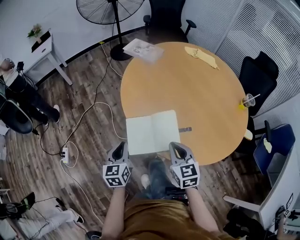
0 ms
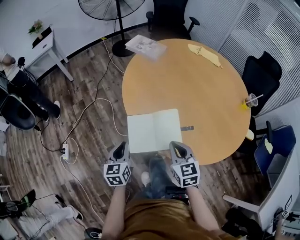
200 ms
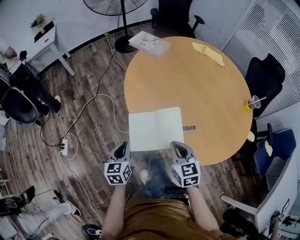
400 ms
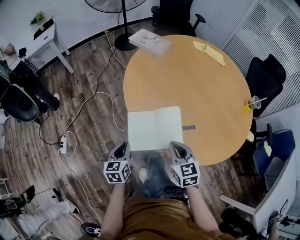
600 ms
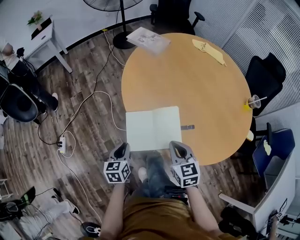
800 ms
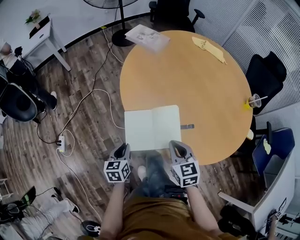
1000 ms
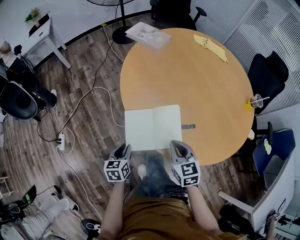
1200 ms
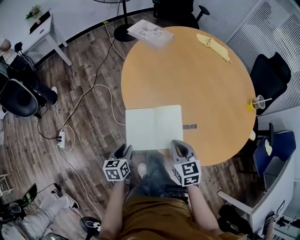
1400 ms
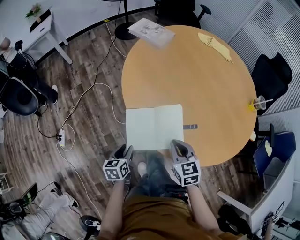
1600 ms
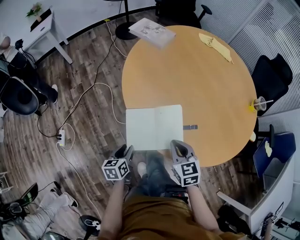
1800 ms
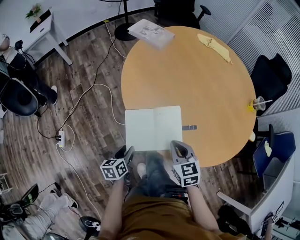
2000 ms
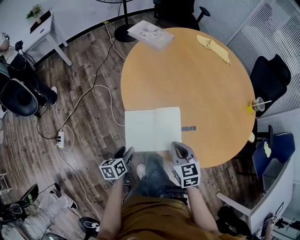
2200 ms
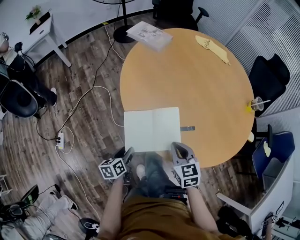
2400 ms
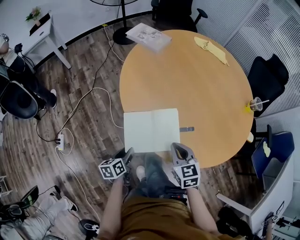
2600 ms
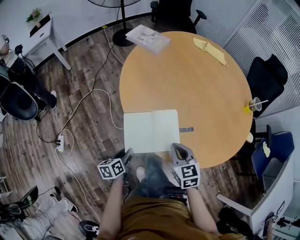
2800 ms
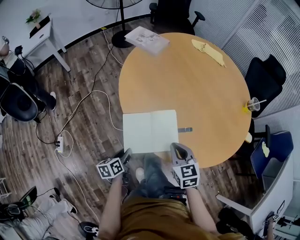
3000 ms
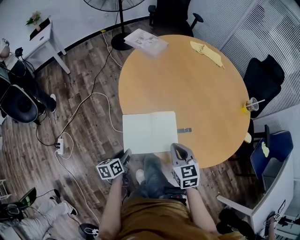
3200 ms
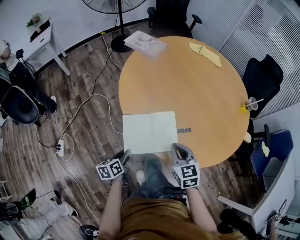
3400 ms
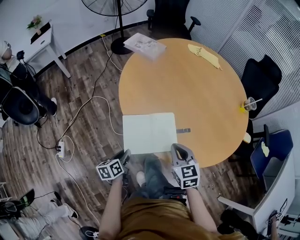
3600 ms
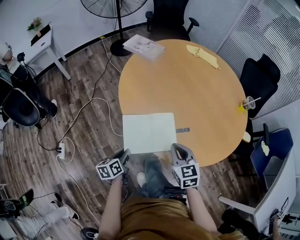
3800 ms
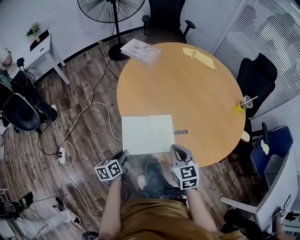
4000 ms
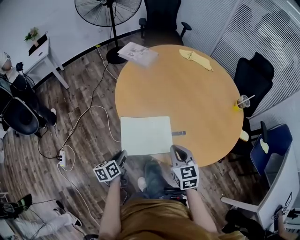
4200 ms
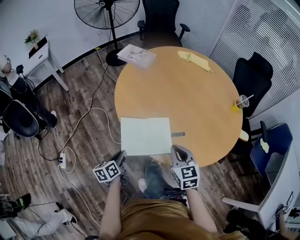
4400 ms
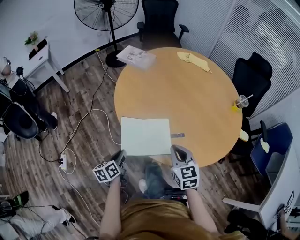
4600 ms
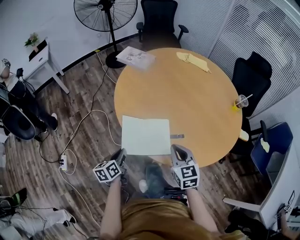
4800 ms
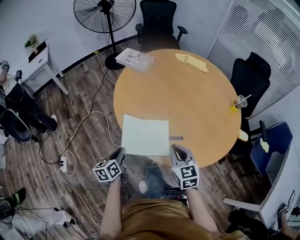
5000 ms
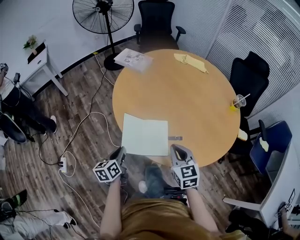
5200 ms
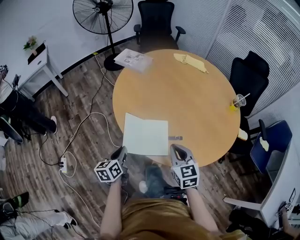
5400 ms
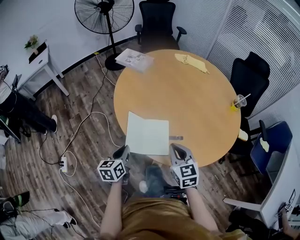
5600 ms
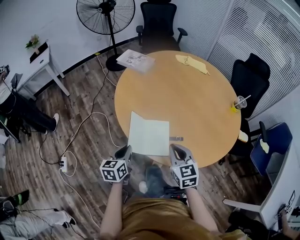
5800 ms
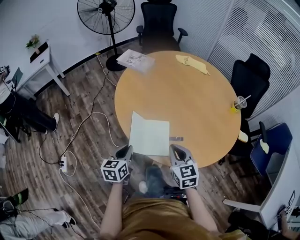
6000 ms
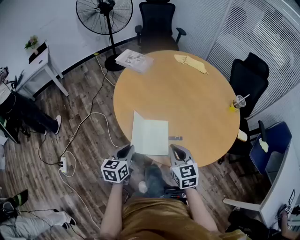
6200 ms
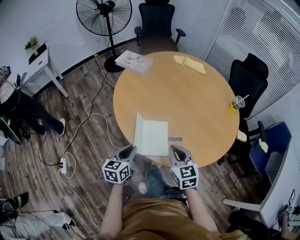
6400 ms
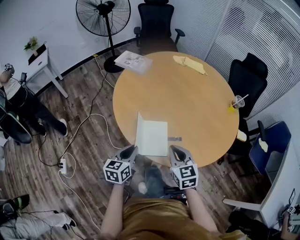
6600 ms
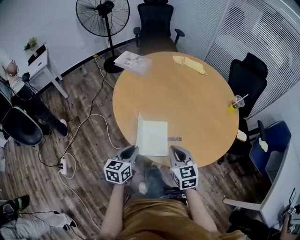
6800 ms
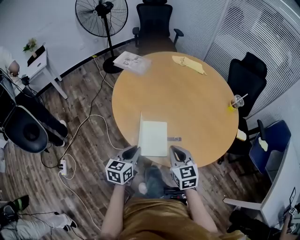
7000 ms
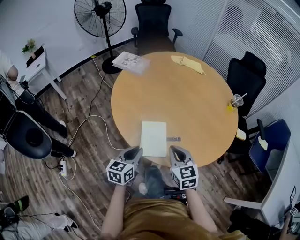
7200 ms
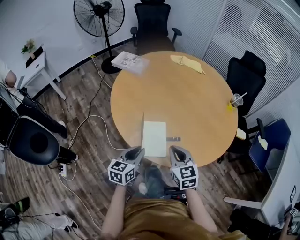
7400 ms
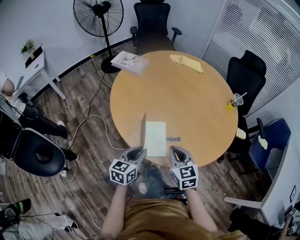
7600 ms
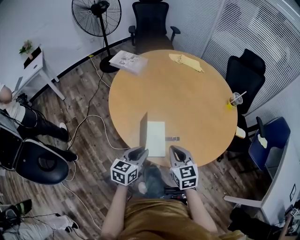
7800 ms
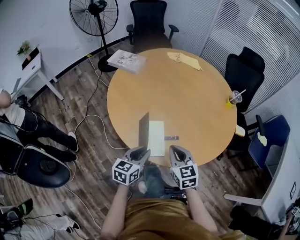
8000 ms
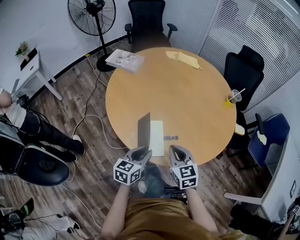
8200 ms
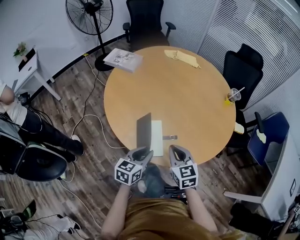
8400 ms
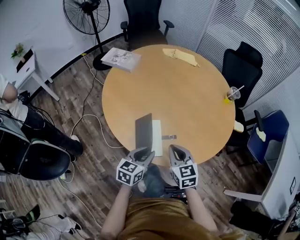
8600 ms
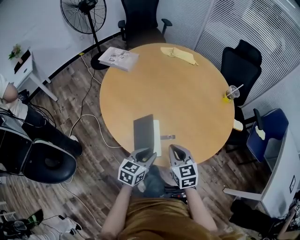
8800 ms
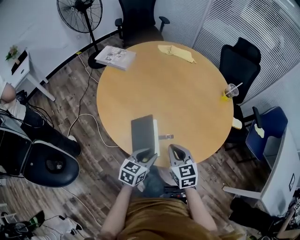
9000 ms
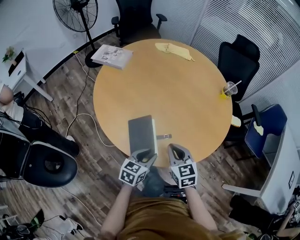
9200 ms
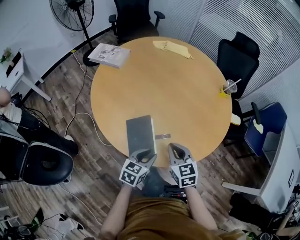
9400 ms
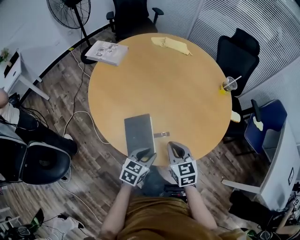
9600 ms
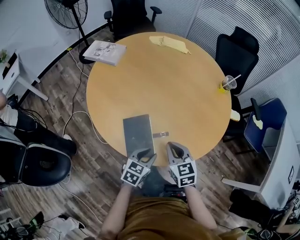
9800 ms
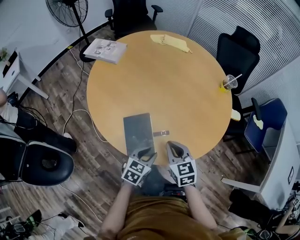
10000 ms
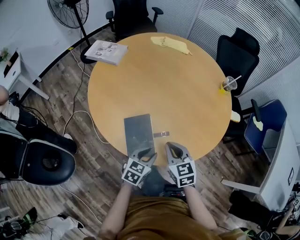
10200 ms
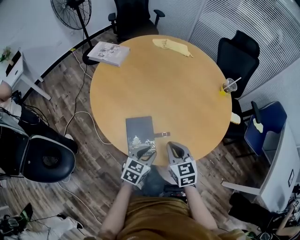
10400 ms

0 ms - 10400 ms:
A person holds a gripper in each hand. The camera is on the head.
0 ms - 1400 ms: The right gripper shifts about 5 cm downward, while the left gripper moves downward, roughly 10 cm, swivels roughly 20 degrees, and opens its fingers.
1400 ms - 3000 ms: The grippers make only small movements.
3000 ms - 4400 ms: The left gripper goes some 5 cm upward; the right gripper ends up roughly 5 cm from where it was.
4400 ms - 6000 ms: The left gripper goes approximately 5 cm upward, and changes its angle by about 30 degrees.
6000 ms - 7400 ms: The left gripper moves to the right, about 5 cm.
7400 ms - 9000 ms: The left gripper heads to the right, covering some 10 cm.
9000 ms - 10400 ms: There are only small adjustments of the grippers.

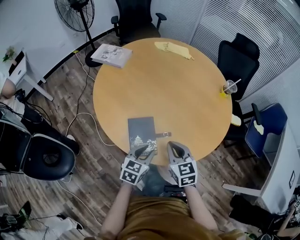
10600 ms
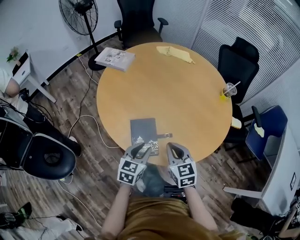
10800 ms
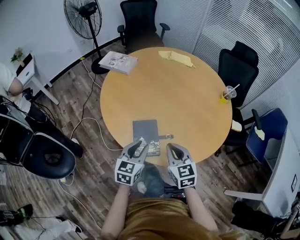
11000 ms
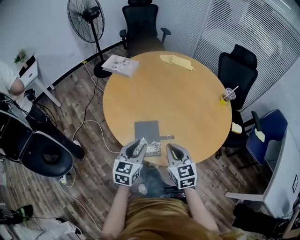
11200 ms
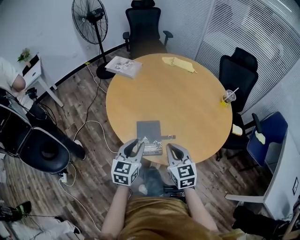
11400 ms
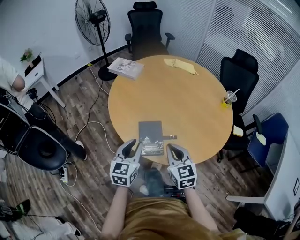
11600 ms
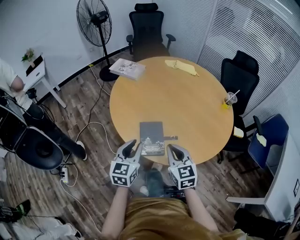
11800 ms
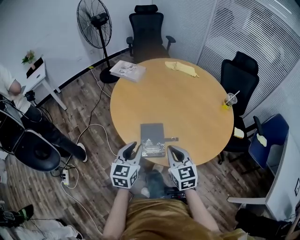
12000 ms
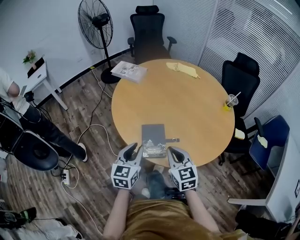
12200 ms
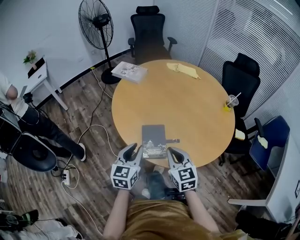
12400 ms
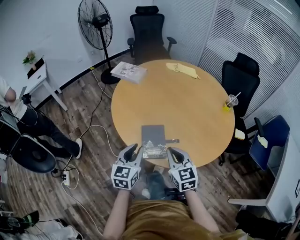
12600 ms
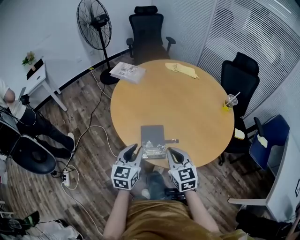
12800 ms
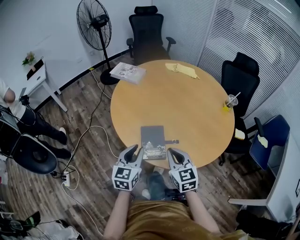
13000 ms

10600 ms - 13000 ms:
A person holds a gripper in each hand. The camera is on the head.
10600 ms - 11800 ms: The right gripper shifts some 10 cm upward and backward. The left gripper travels upward and to the left by some 15 cm, and turns by about 30 degrees.
11800 ms - 13000 ms: Neither gripper changes place.

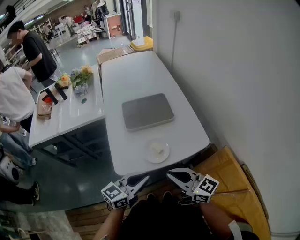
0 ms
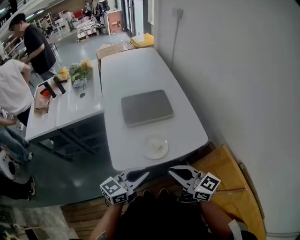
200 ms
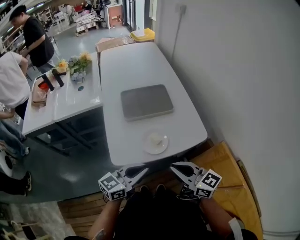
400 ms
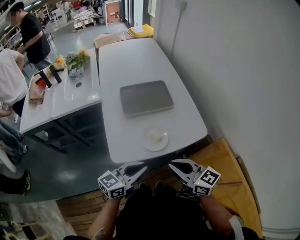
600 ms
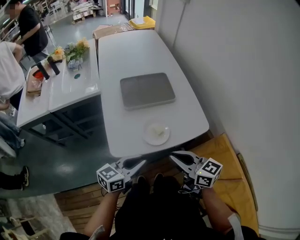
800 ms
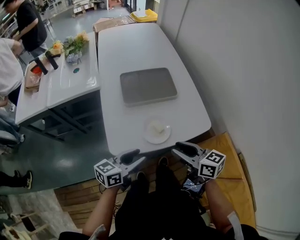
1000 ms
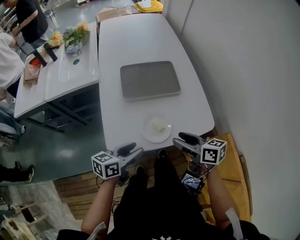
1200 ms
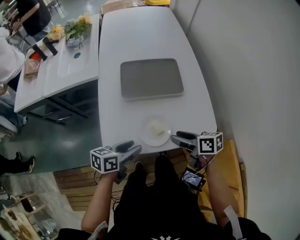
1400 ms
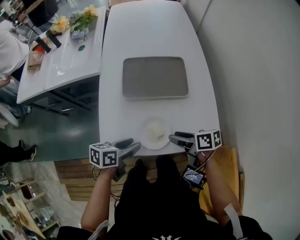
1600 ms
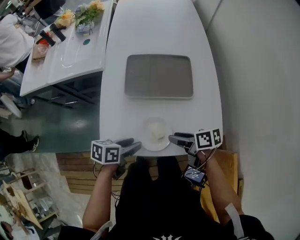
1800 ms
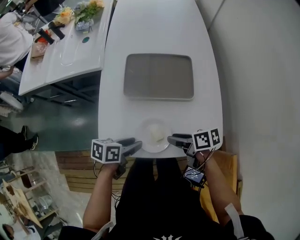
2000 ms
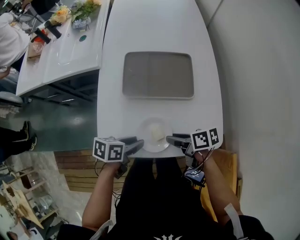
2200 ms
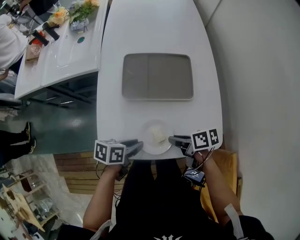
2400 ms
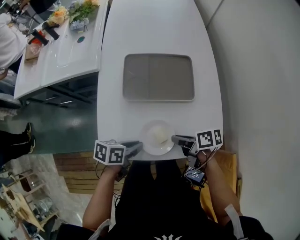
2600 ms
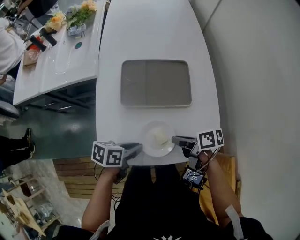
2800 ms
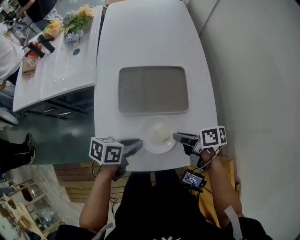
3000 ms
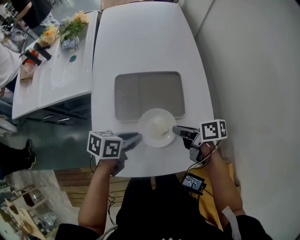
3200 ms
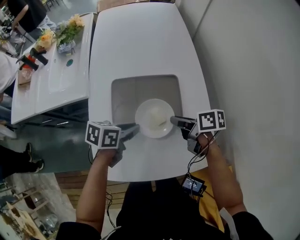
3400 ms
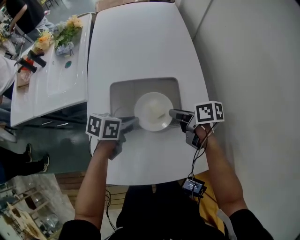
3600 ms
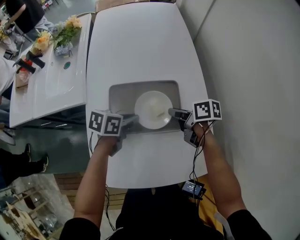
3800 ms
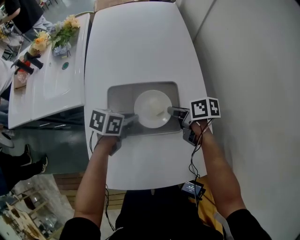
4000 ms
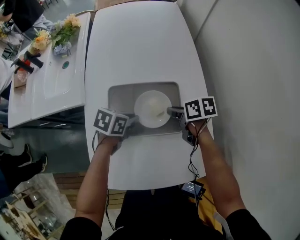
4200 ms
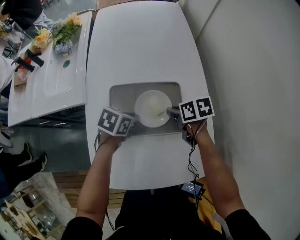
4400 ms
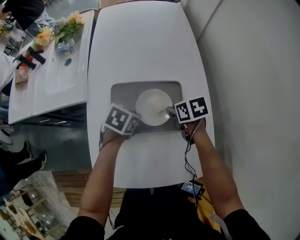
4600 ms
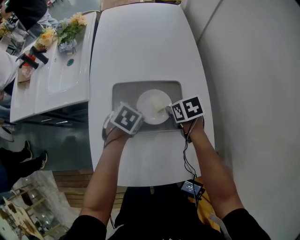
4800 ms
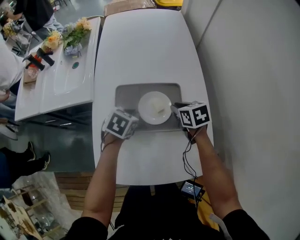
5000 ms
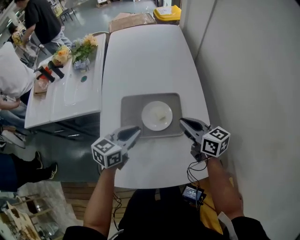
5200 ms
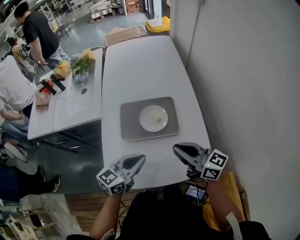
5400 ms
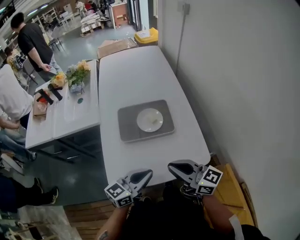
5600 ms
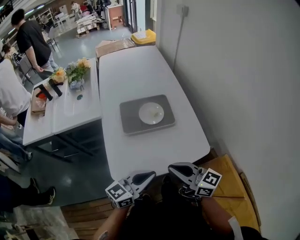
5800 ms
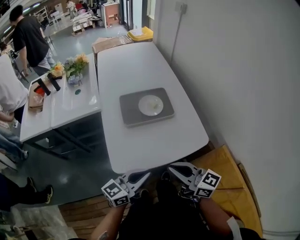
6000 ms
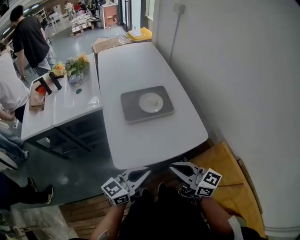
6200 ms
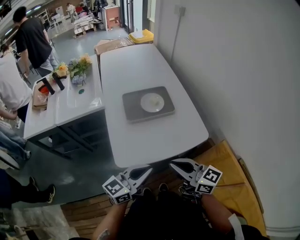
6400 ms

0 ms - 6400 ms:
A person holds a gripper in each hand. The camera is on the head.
0 ms - 1600 ms: Both grippers move downward and forward, about 25 cm. The left gripper swivels some 50 degrees, and opens. The right gripper turns by roughly 60 degrees, and opens its fingers.
1600 ms - 3200 ms: The right gripper moves approximately 15 cm, and closes; the left gripper ends up about 15 cm from where it was, and closes.
3200 ms - 4800 ms: The left gripper ends up approximately 15 cm from where it was, and rotates roughly 40 degrees. The right gripper ends up some 15 cm from where it was, and rotates some 40 degrees.
4800 ms - 6400 ms: The two grippers travel together, backward, about 50 cm. Both grippers travel together upward, about 20 cm. The left gripper angles its fingers upward, by roughly 70 degrees, while the right gripper points its fingers about 60 degrees further upward, and closes up.

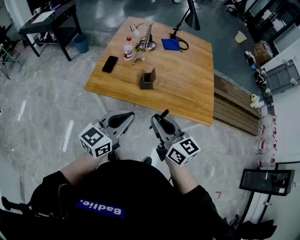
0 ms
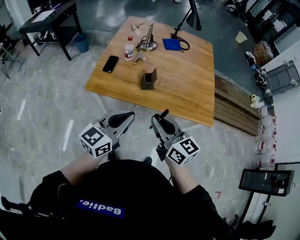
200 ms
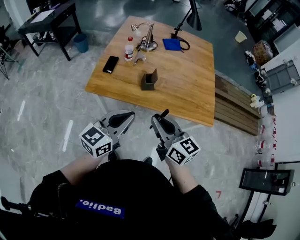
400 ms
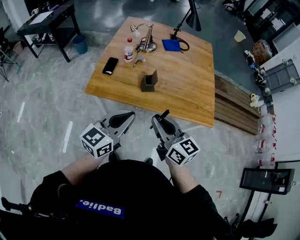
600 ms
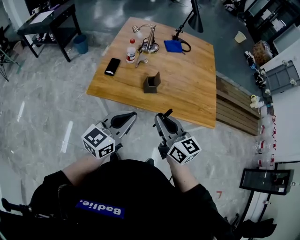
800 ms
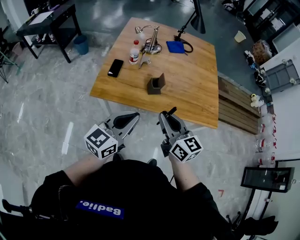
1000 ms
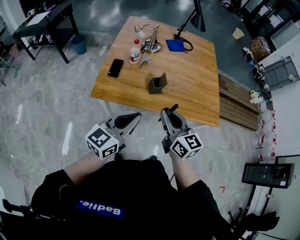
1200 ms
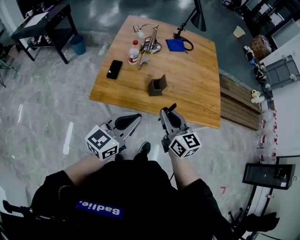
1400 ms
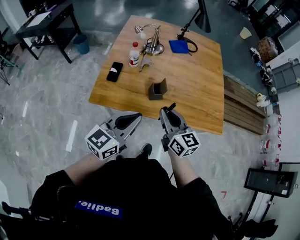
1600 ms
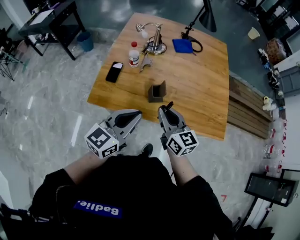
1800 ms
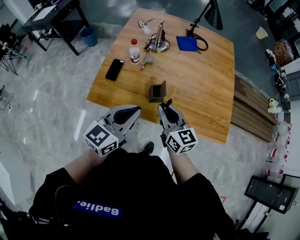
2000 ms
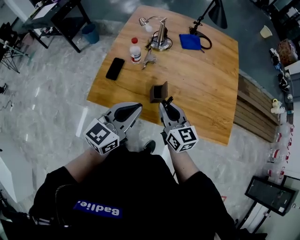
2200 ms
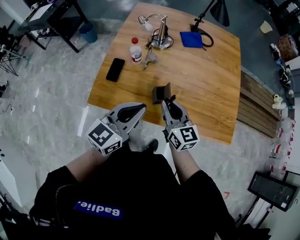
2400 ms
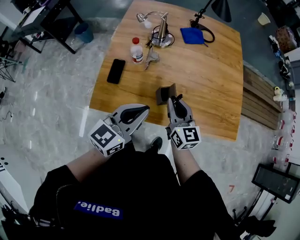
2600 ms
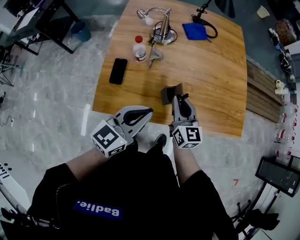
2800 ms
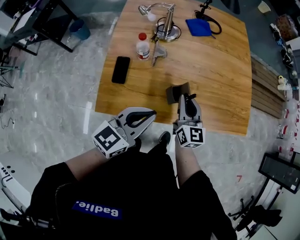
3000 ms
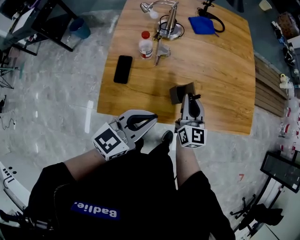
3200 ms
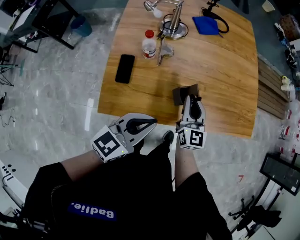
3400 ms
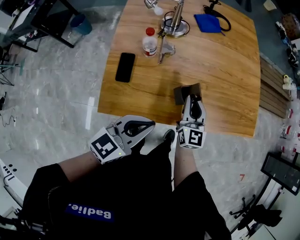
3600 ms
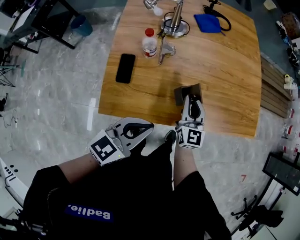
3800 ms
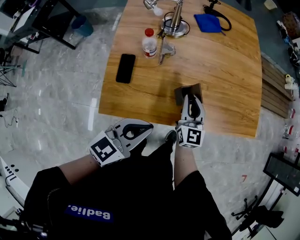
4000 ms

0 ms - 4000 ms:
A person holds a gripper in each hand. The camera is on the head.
0 ms - 1400 ms: The left gripper shifts about 10 cm to the left and forward, while the right gripper is displaced forward and to the left by some 10 cm.
1400 ms - 2600 ms: The right gripper moves forward and downward, approximately 20 cm. The left gripper goes approximately 15 cm forward.
2600 ms - 4000 ms: The grippers both shift downward by roughly 10 cm. The right gripper changes its angle by some 20 degrees.
